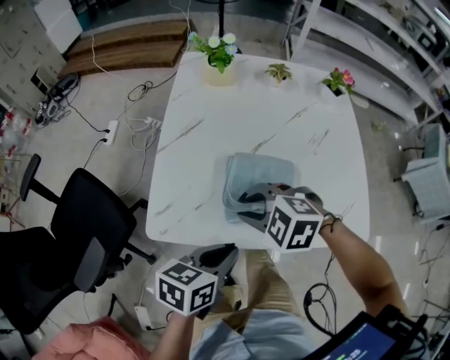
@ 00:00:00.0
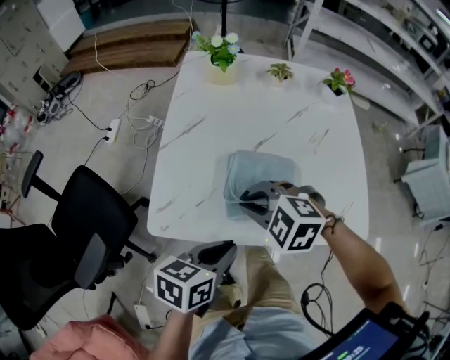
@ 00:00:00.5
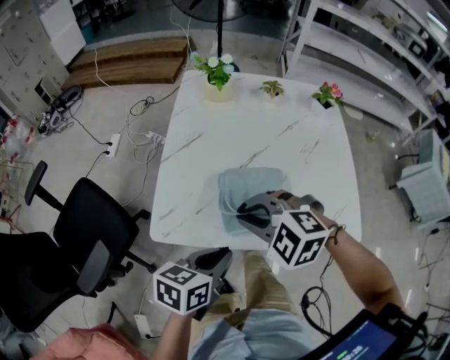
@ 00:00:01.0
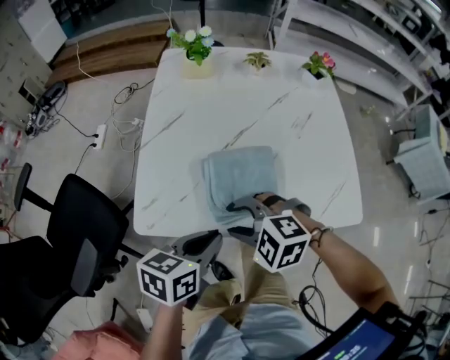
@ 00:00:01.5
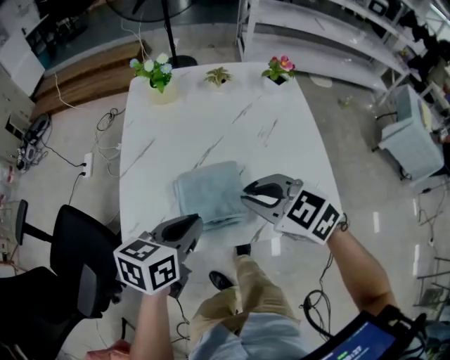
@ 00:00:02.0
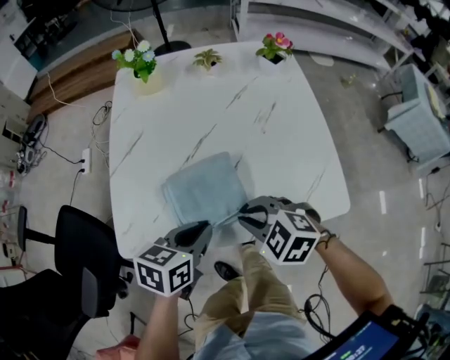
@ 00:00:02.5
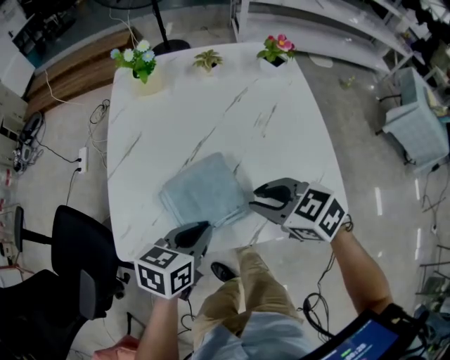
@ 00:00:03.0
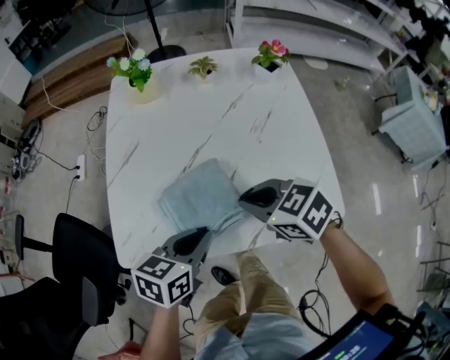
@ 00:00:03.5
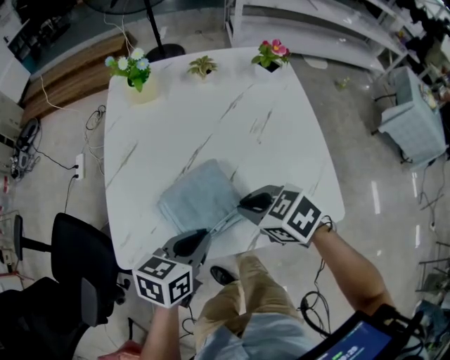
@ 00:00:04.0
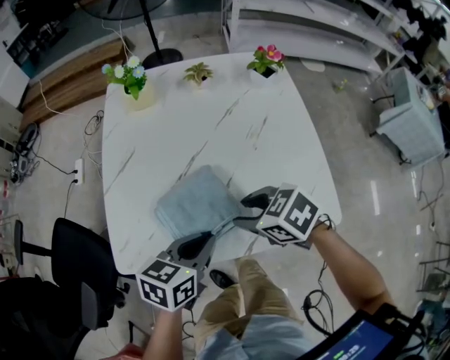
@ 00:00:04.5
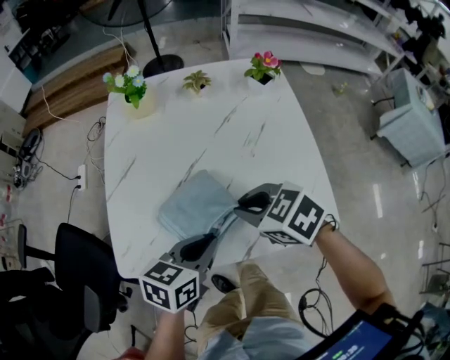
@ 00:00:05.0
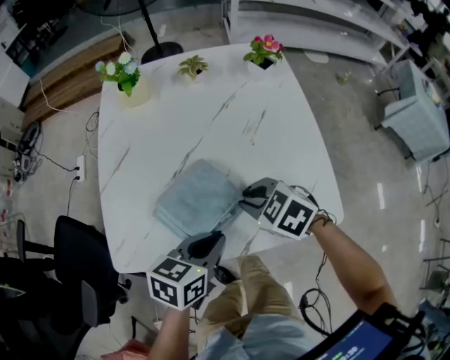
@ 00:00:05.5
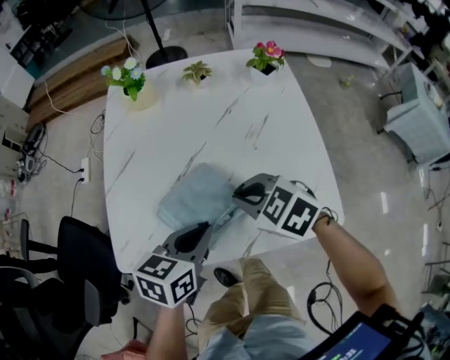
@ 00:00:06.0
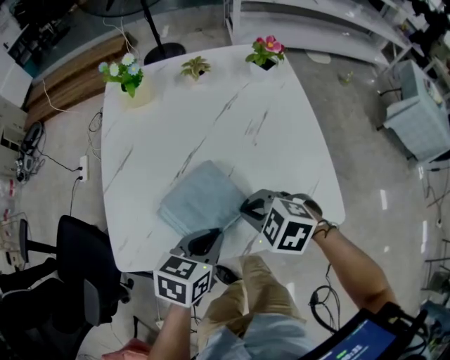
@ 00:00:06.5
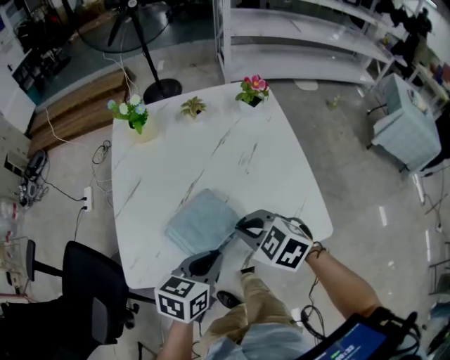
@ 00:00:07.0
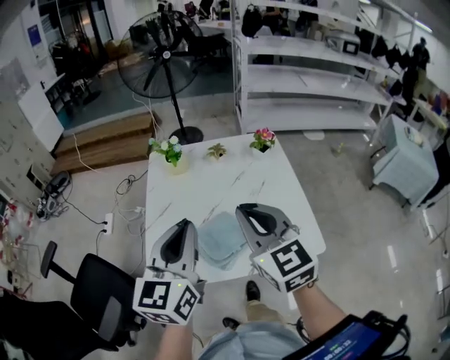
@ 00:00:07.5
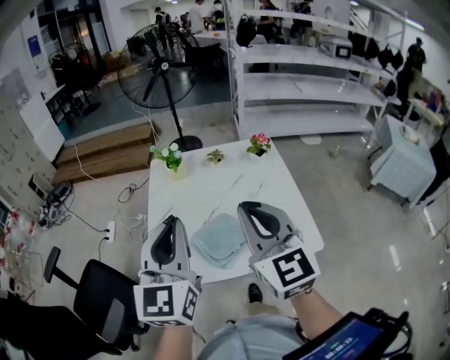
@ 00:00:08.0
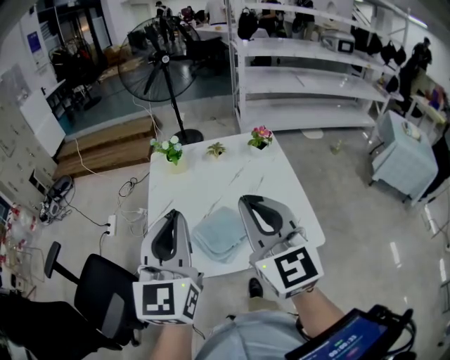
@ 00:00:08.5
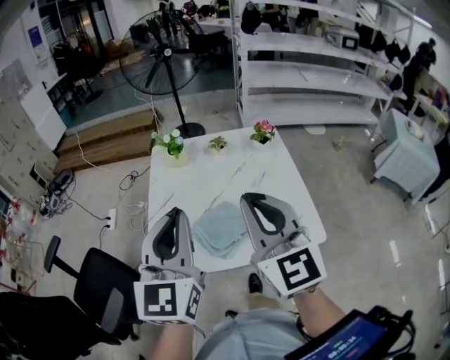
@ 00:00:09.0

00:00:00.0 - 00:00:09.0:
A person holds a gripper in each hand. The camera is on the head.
00:00:00.0 - 00:00:02.0: The right gripper heads to the right and upward, covering some 15 cm, and turns by about 30 degrees. The left gripper moves forward and upward, some 10 cm.
00:00:02.0 - 00:00:04.5: The left gripper travels to the right by roughly 5 cm; the right gripper heads downward, covering approximately 10 cm, turns by about 30 degrees, and opens its fingers.
00:00:04.5 - 00:00:07.0: The right gripper goes up and down, approximately 5 cm each way, reversing 4 times, rotates approximately 20 degrees, and closes its fingers.
00:00:07.0 - 00:00:09.0: Both grippers travel together upward, about 30 cm. The left gripper tips its fingers upward by approximately 40 degrees. The right gripper angles its fingers upward, by roughly 50 degrees.

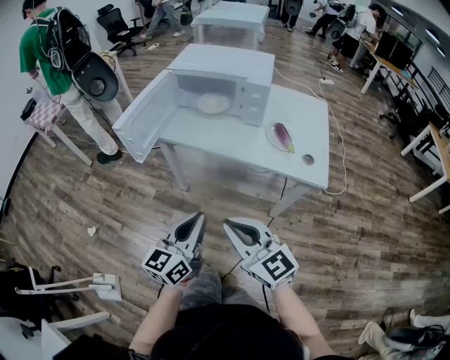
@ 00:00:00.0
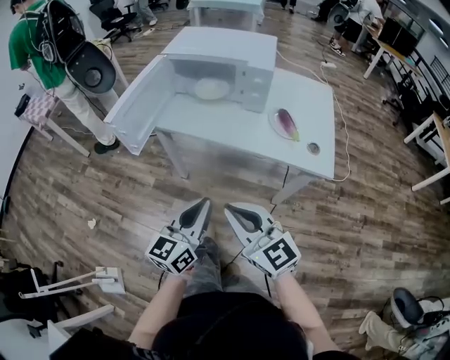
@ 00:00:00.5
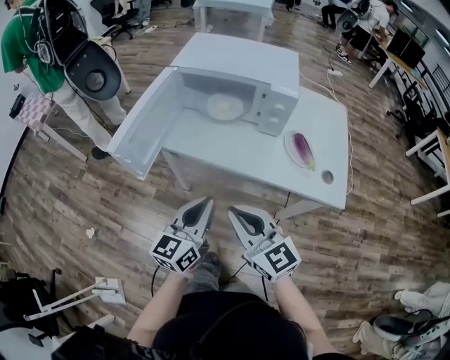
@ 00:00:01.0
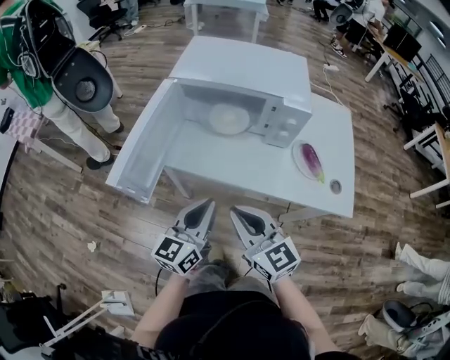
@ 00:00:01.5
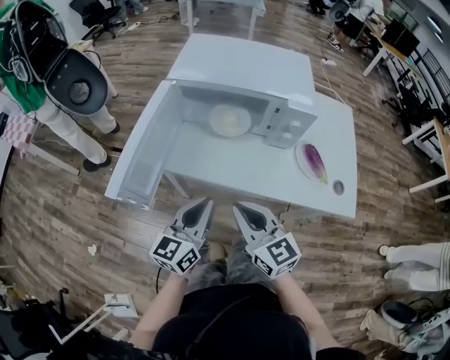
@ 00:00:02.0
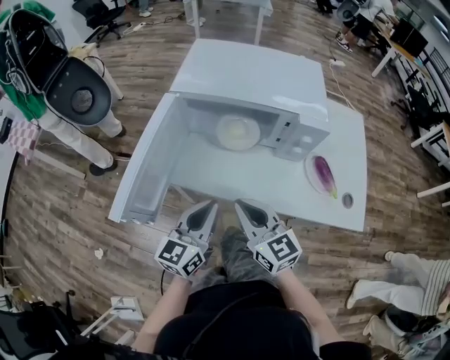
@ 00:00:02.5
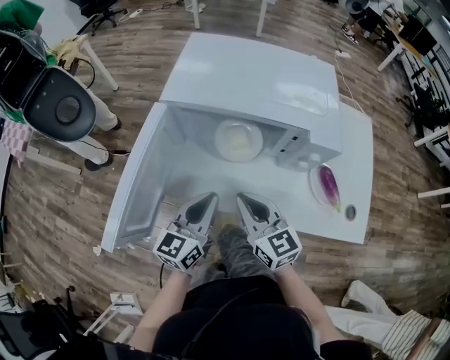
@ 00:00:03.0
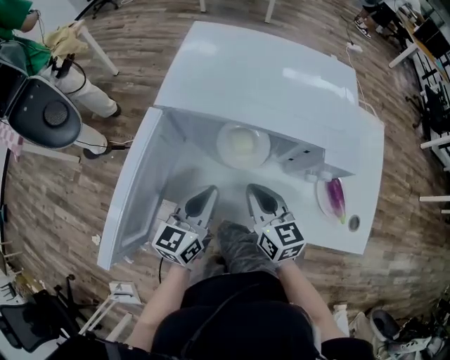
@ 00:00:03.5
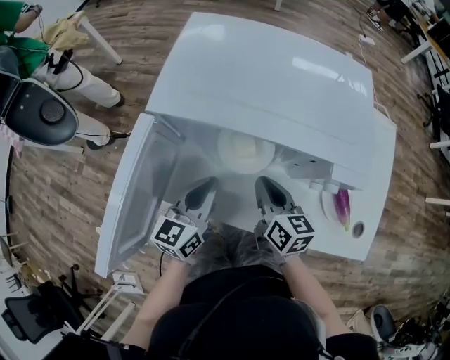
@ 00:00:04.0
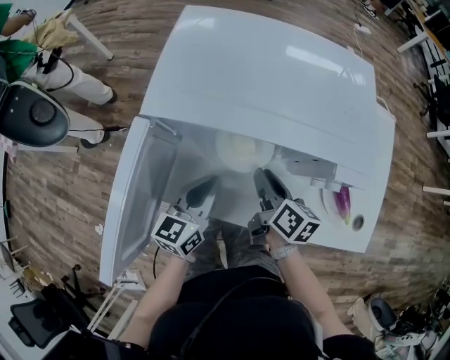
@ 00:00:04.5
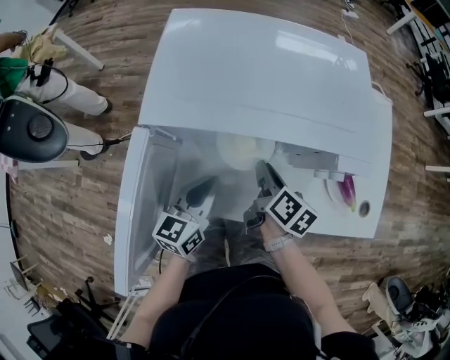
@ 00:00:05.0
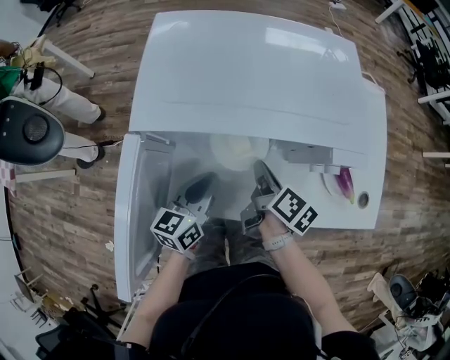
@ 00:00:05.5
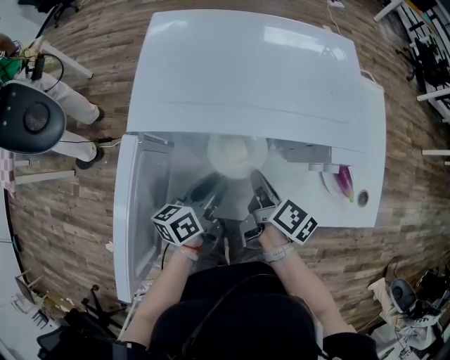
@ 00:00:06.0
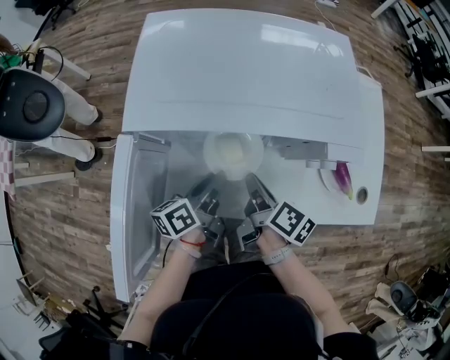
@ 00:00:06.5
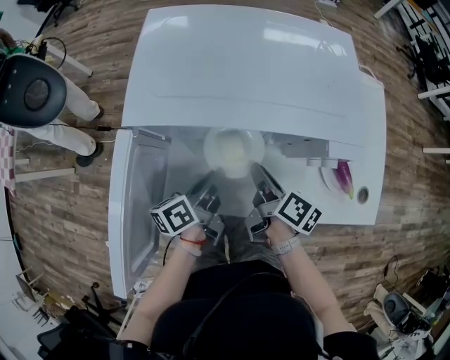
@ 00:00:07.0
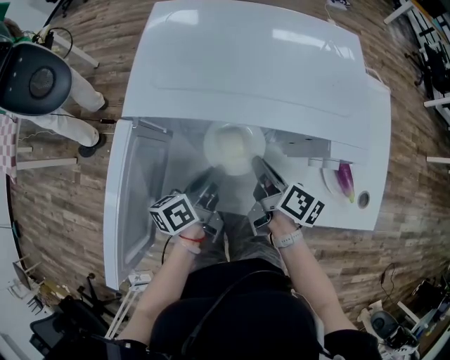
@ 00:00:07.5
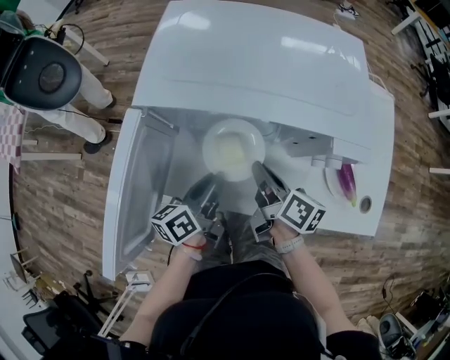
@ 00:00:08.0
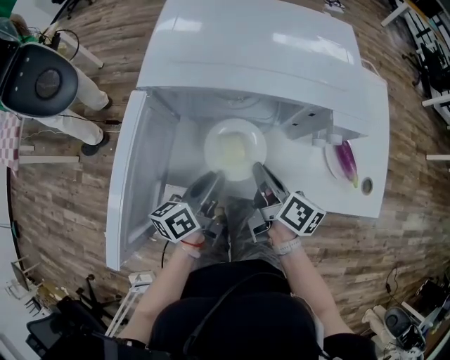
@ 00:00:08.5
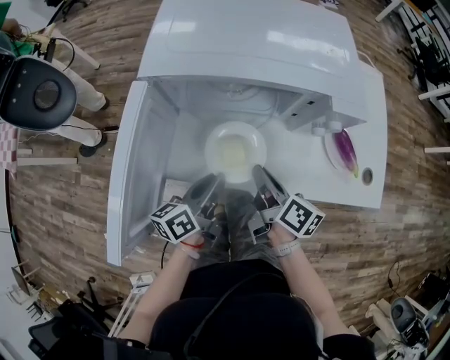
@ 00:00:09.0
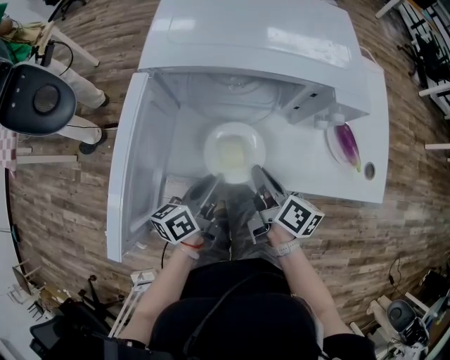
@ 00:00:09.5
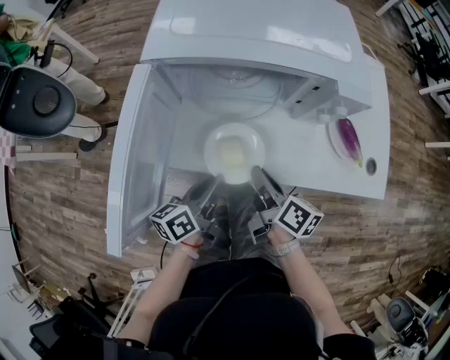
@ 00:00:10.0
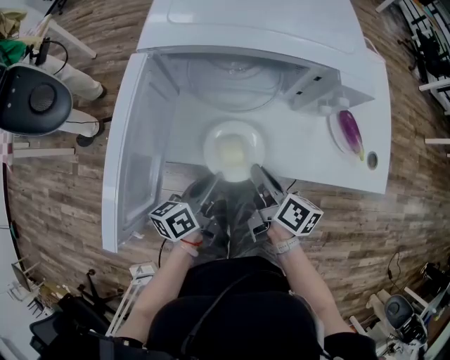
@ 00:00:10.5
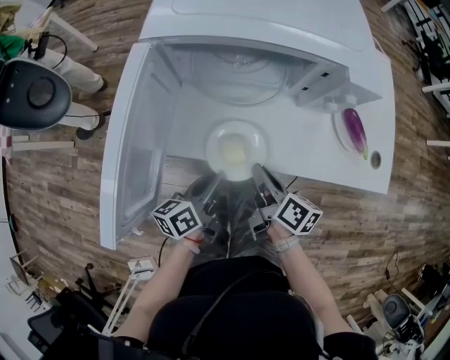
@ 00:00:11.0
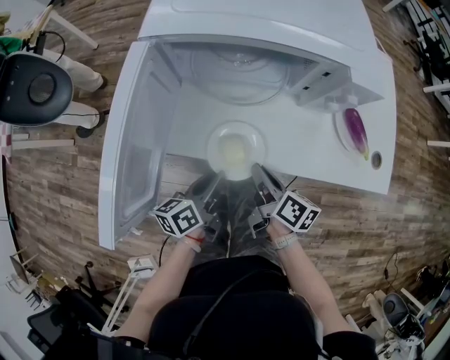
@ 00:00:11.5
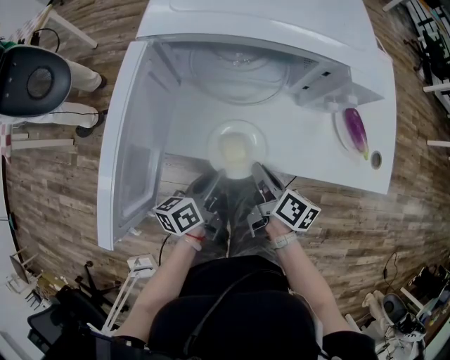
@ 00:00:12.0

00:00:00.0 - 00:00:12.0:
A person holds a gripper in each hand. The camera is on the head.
00:00:00.0 - 00:00:02.0: The two grippers go some 30 cm forward.
00:00:02.0 - 00:00:04.0: The left gripper goes about 20 cm forward. The right gripper moves forward and downward, approximately 25 cm, and changes its angle by some 30 degrees.
00:00:04.0 - 00:00:06.0: The right gripper twists roughly 40 degrees clockwise, seen from behind, while the left gripper changes its angle by about 30 degrees, and opens its fingers.
00:00:08.0 - 00:00:10.0: Both grippers travel together backward, about 10 cm.
00:00:10.0 - 00:00:12.0: The left gripper changes place by roughly 5 cm. Meanwhile the right gripper shifts some 5 cm downward.

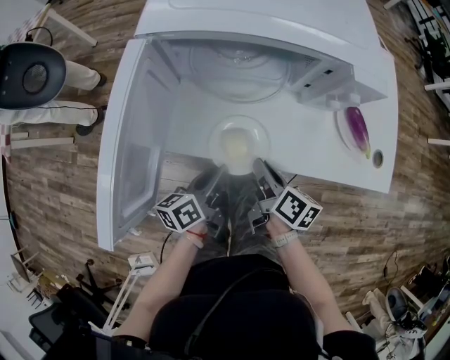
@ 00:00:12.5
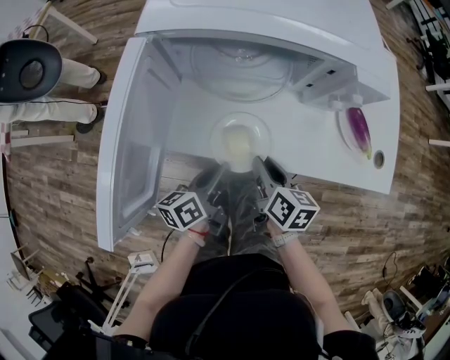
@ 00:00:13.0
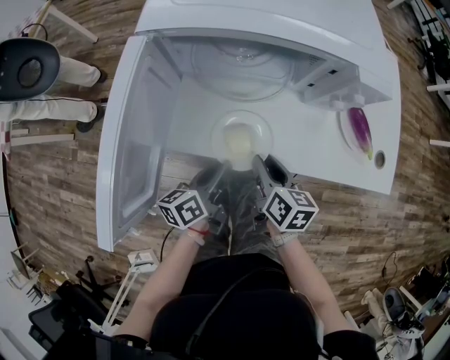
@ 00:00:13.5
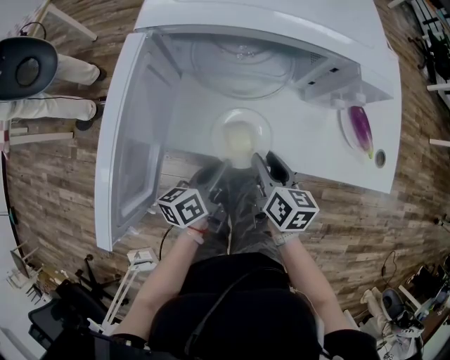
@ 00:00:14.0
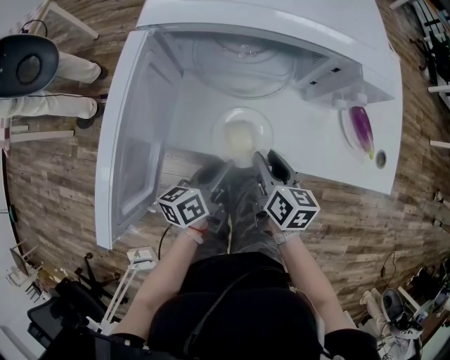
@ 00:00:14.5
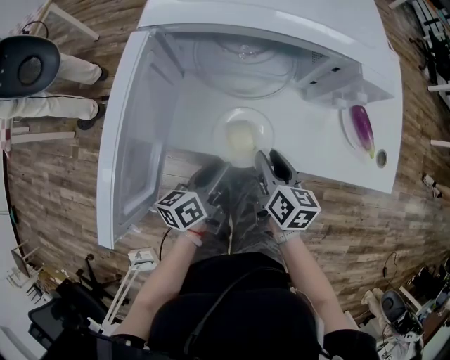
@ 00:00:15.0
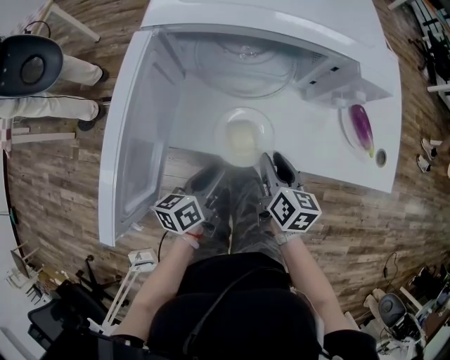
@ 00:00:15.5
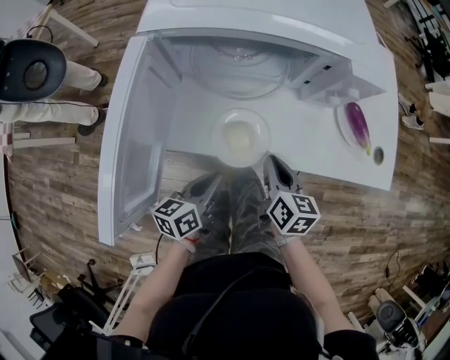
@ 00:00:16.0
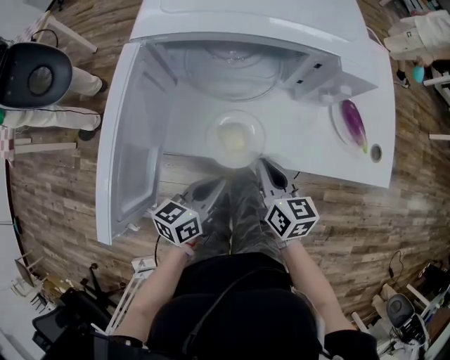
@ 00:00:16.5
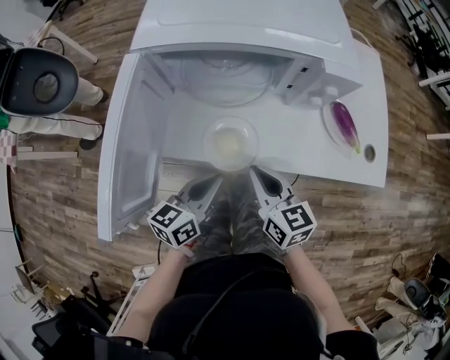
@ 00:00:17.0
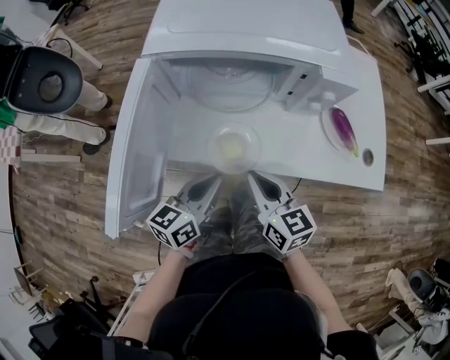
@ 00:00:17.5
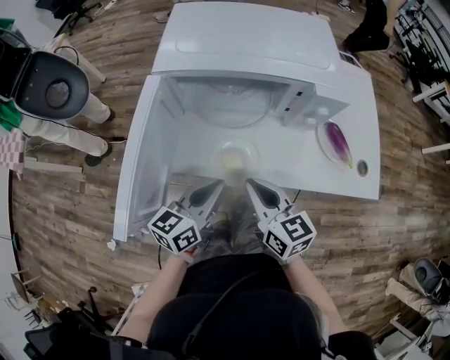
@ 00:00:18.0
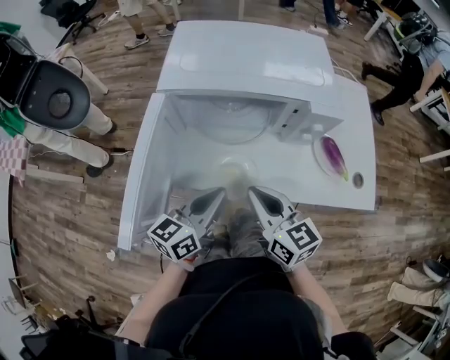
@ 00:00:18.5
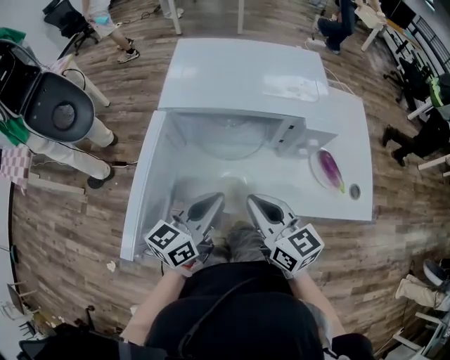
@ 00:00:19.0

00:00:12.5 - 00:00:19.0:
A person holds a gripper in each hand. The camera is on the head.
00:00:12.5 - 00:00:14.5: The right gripper changes its angle by some 20 degrees, and opens up.
00:00:14.5 - 00:00:17.0: Both grippers travel together upward, about 5 cm. The left gripper rotates roughly 20 degrees, and closes, while the right gripper rotates about 20 degrees, and closes up.
00:00:17.0 - 00:00:19.0: The grippers both shift upward by roughly 10 cm.
